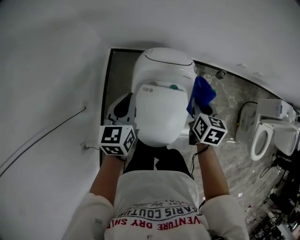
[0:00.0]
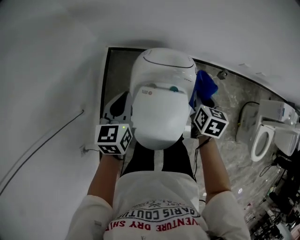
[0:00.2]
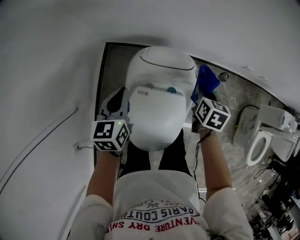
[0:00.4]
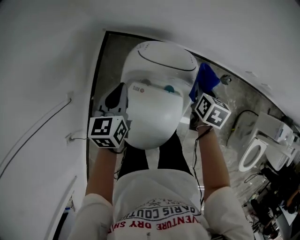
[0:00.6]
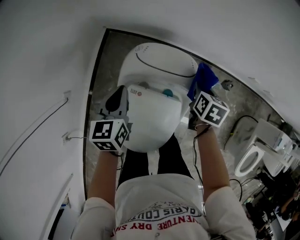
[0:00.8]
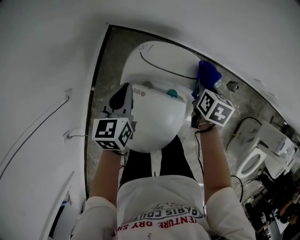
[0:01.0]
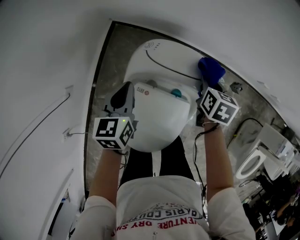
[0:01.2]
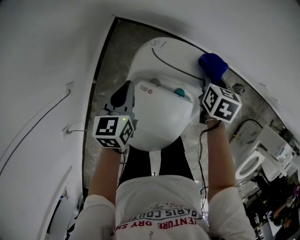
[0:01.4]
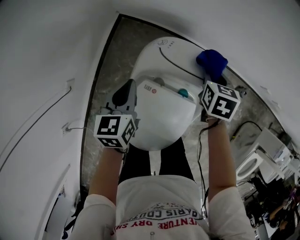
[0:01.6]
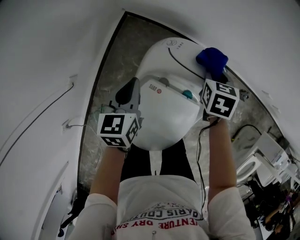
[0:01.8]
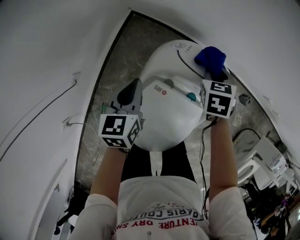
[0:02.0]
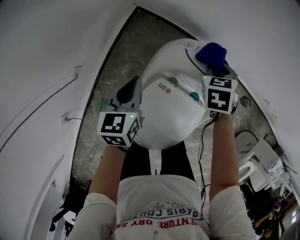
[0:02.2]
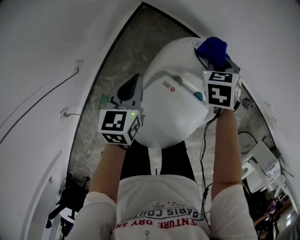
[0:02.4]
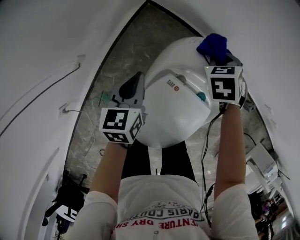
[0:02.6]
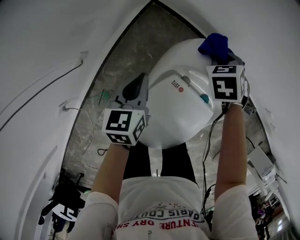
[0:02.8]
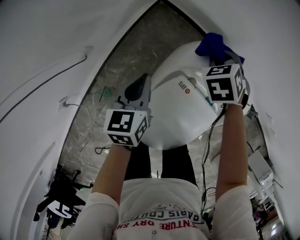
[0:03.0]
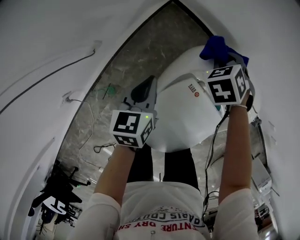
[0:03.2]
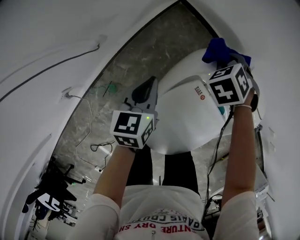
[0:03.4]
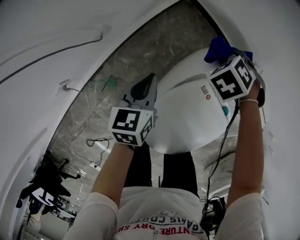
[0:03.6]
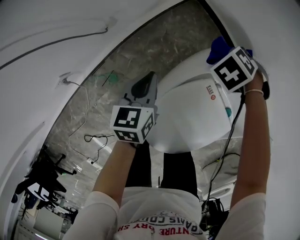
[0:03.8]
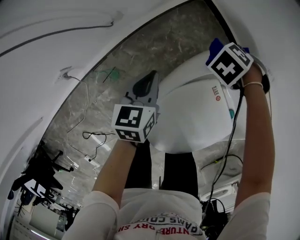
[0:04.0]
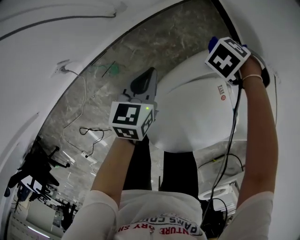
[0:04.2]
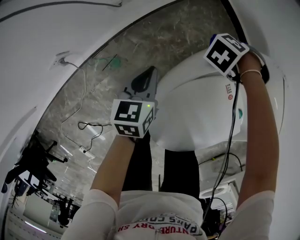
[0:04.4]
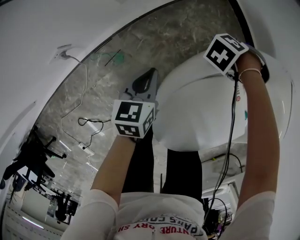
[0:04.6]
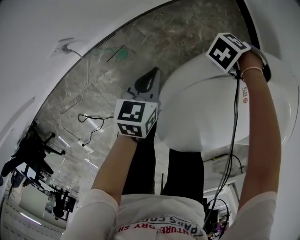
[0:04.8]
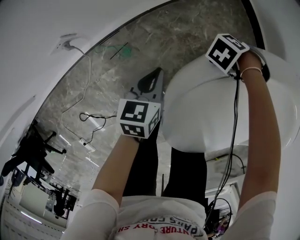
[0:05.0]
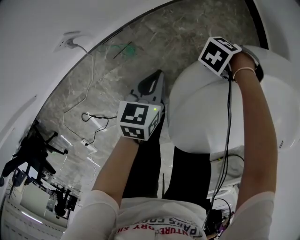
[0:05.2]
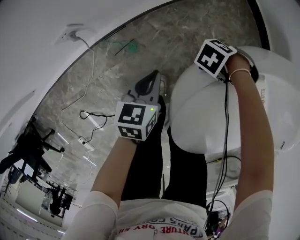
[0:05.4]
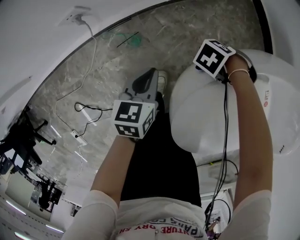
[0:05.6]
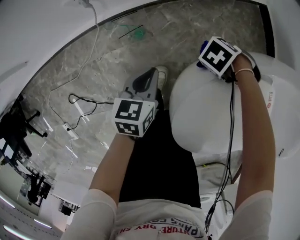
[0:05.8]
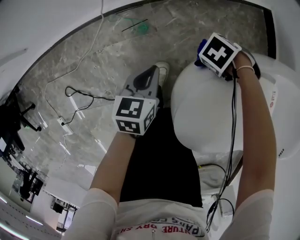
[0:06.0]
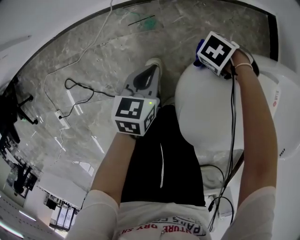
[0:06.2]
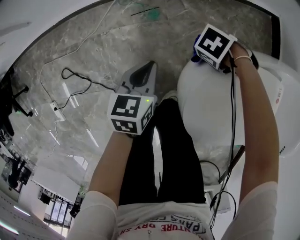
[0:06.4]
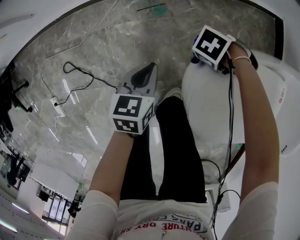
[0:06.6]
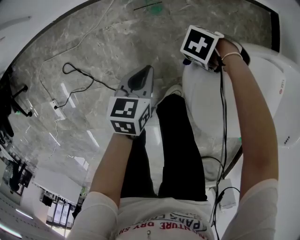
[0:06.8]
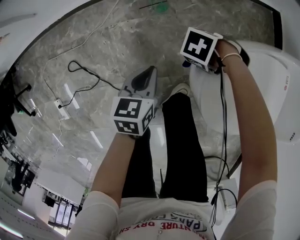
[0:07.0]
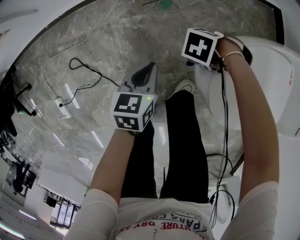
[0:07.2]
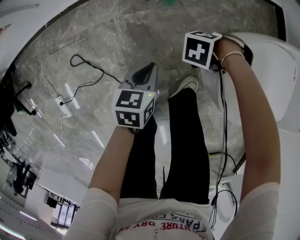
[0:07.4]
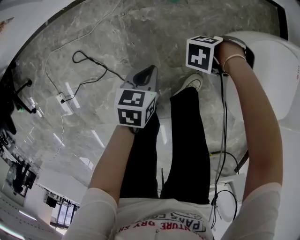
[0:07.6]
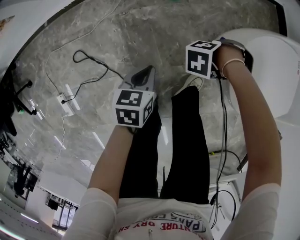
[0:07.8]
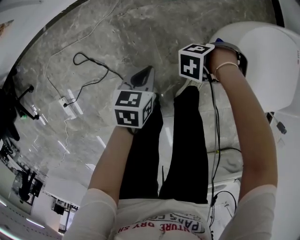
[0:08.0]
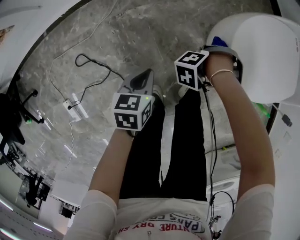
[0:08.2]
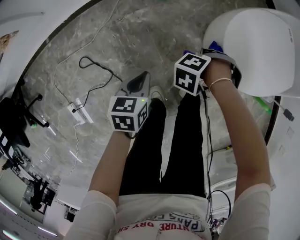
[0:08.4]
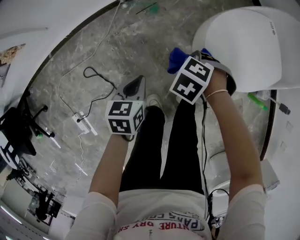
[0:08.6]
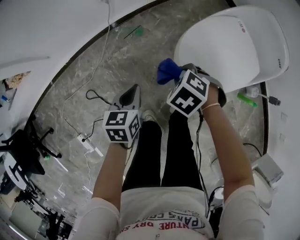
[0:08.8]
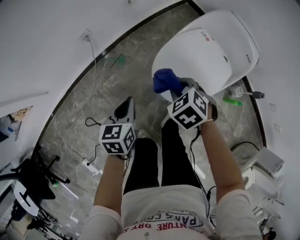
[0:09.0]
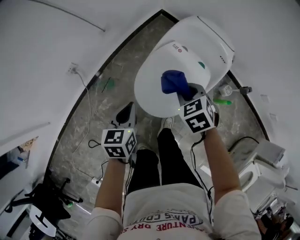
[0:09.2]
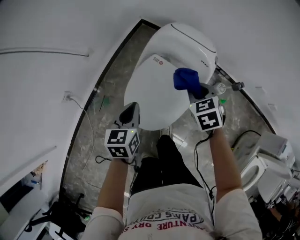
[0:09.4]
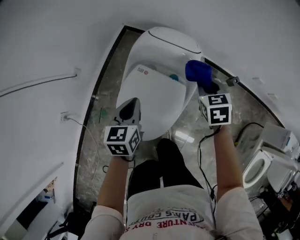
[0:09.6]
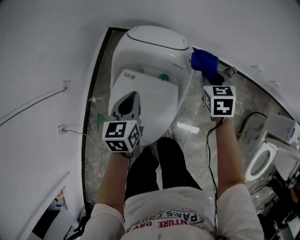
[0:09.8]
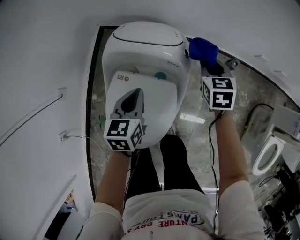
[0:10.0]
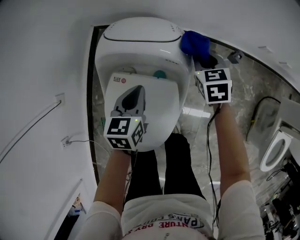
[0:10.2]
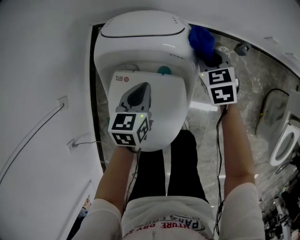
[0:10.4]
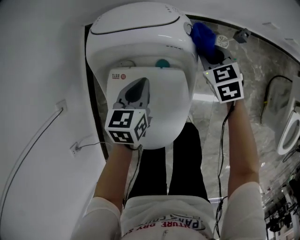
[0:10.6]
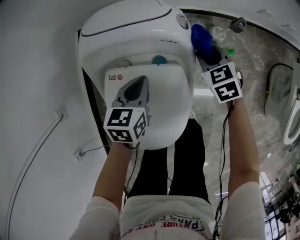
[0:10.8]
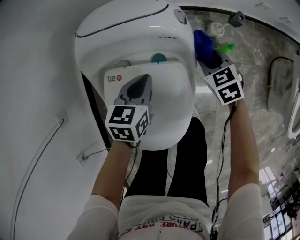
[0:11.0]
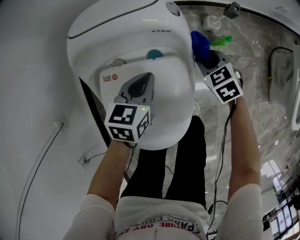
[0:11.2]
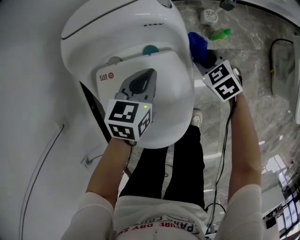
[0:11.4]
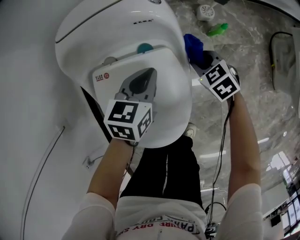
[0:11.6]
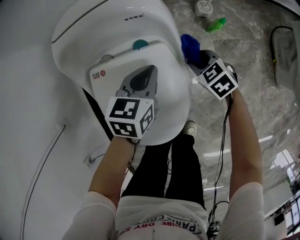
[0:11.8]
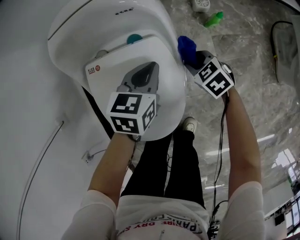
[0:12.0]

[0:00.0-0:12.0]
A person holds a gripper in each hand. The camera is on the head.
0.0 to 1.6 s: The right gripper is displaced forward and downward by approximately 30 cm, and swivels about 30 degrees. Meanwhile the left gripper is displaced downward and forward by approximately 20 cm.
1.6 to 3.0 s: The right gripper shifts about 25 cm to the left, and rolls counterclockwise, seen from behind, by about 50 degrees. The left gripper travels to the left, backward and downward by approximately 15 cm.
3.0 to 4.4 s: The right gripper is displaced downward by some 20 cm, and twists roughly 50 degrees counterclockwise, seen from behind, while the left gripper changes place by about 25 cm.
4.4 to 6.0 s: The left gripper travels to the right, backward and downward by approximately 25 cm. The right gripper goes about 30 cm backward, to the right and downward.
6.0 to 7.6 s: Both grippers travel together to the right and backward, some 25 cm. The right gripper turns by about 30 degrees.
7.6 to 9.0 s: The grippers both shift upward by approximately 30 cm. The left gripper swivels roughly 20 degrees. Meanwhile the right gripper changes its angle by some 80 degrees.
9.0 to 10.4 s: The two grippers travel together, roughly 50 cm. The left gripper swivels about 50 degrees. Meanwhile the right gripper twists approximately 60 degrees clockwise, seen from behind.
10.4 to 12.0 s: The left gripper heads to the right, backward and downward, covering roughly 15 cm, and swivels approximately 30 degrees, while the right gripper heads backward and downward, covering some 25 cm.

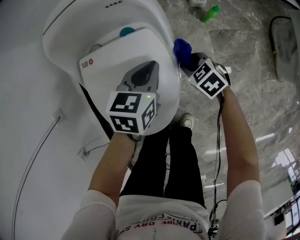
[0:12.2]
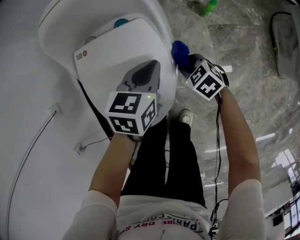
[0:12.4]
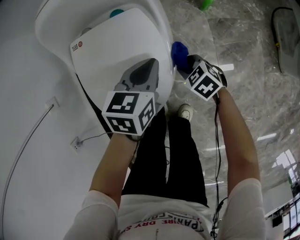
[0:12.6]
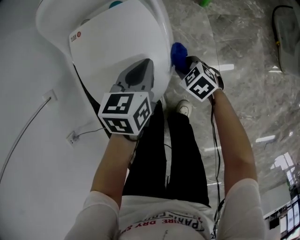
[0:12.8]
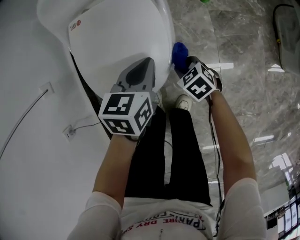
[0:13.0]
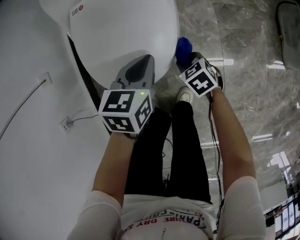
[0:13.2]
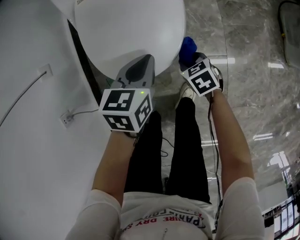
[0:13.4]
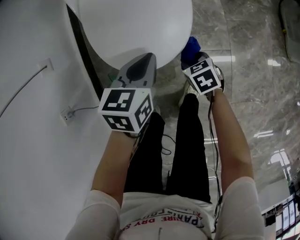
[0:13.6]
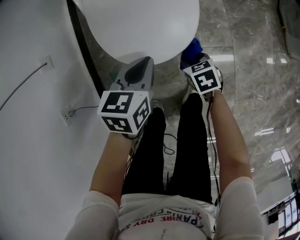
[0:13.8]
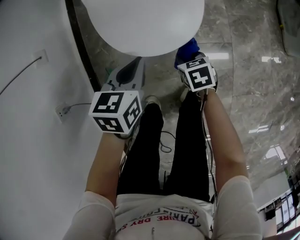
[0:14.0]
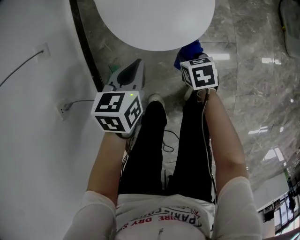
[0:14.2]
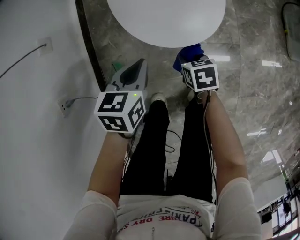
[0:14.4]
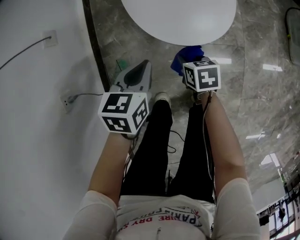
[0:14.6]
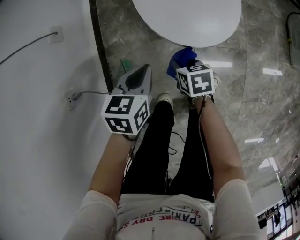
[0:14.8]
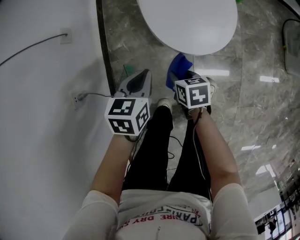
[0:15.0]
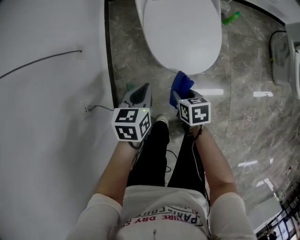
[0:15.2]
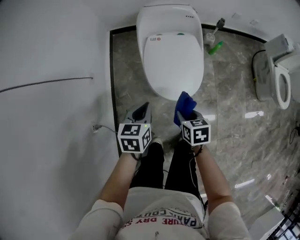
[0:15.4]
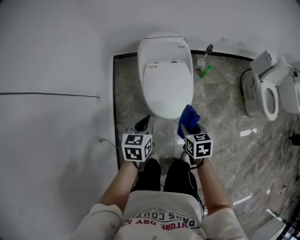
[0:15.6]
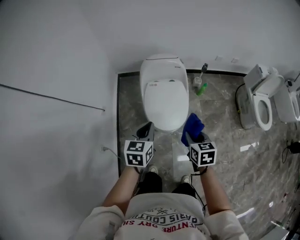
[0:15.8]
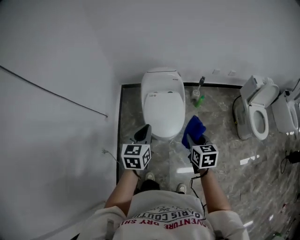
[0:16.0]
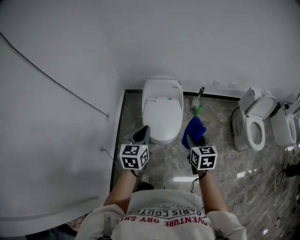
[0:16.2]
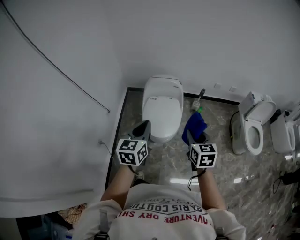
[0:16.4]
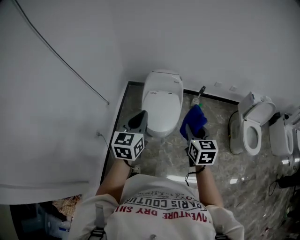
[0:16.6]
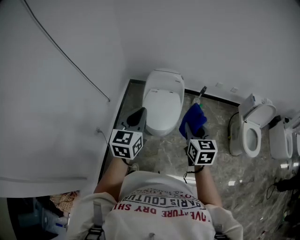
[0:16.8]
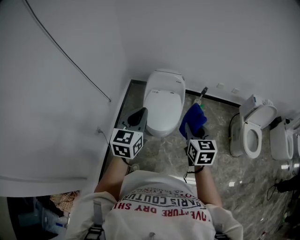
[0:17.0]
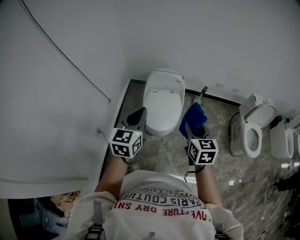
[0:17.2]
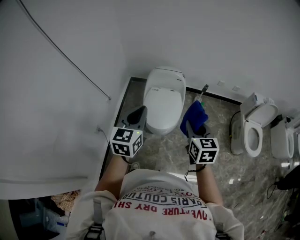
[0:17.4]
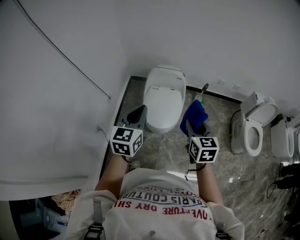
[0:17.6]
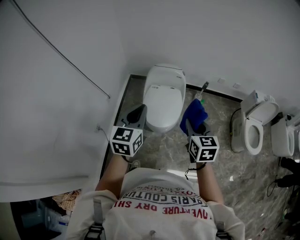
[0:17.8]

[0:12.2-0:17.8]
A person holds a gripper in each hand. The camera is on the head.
12.2 to 13.6 s: Both grippers move backward and to the left, approximately 25 cm.
13.6 to 15.0 s: The grippers both shift to the left by roughly 25 cm.
15.0 to 16.4 s: Both grippers move upward, roughly 60 cm. The right gripper changes its angle by about 40 degrees, while the left gripper angles its fingers upward, by some 30 degrees.
16.4 to 17.8 s: There are only small adjustments of the grippers.

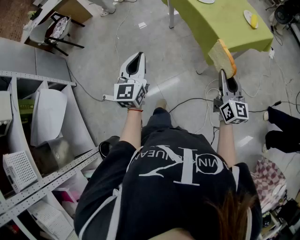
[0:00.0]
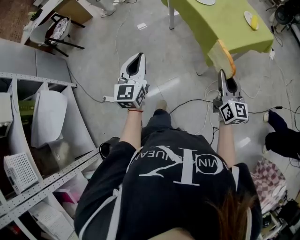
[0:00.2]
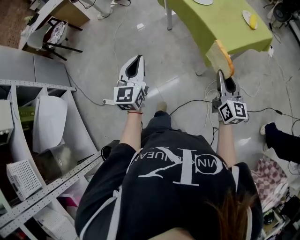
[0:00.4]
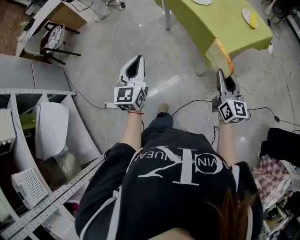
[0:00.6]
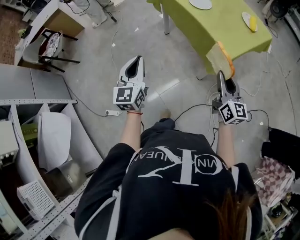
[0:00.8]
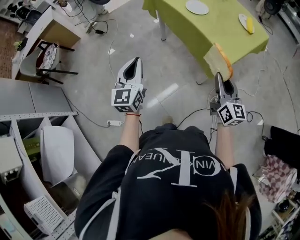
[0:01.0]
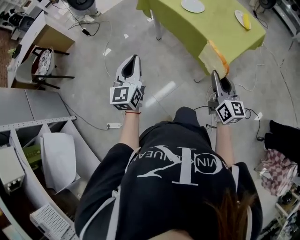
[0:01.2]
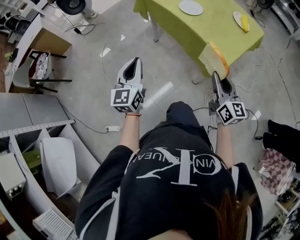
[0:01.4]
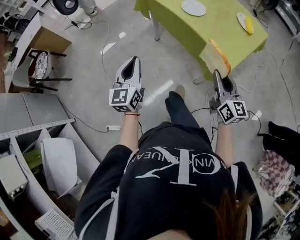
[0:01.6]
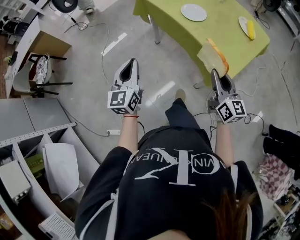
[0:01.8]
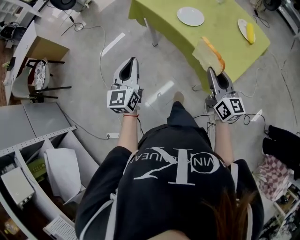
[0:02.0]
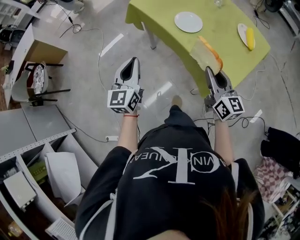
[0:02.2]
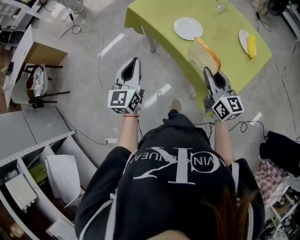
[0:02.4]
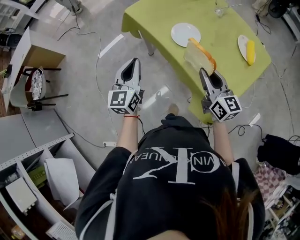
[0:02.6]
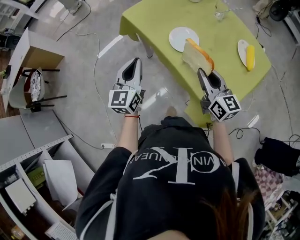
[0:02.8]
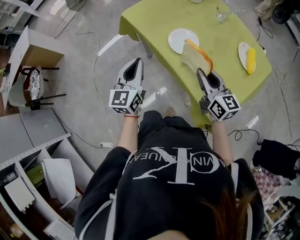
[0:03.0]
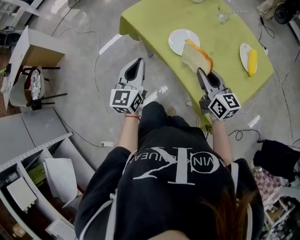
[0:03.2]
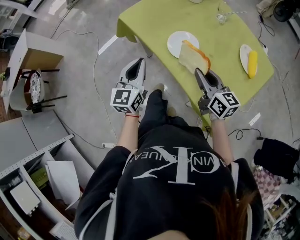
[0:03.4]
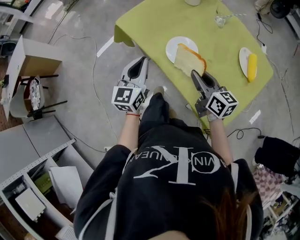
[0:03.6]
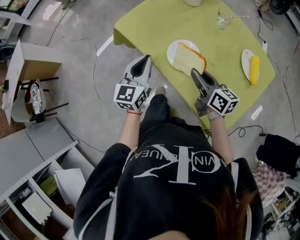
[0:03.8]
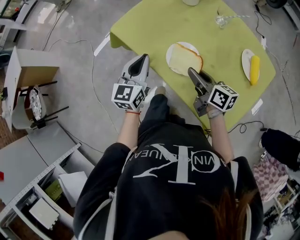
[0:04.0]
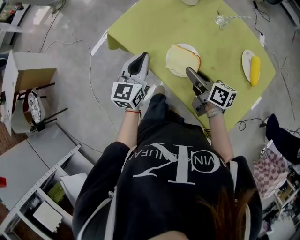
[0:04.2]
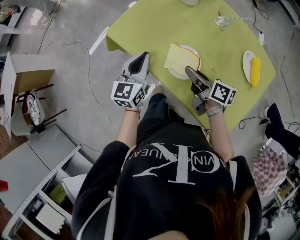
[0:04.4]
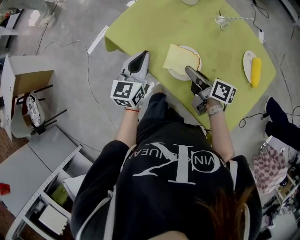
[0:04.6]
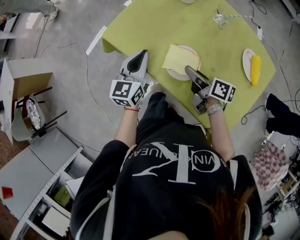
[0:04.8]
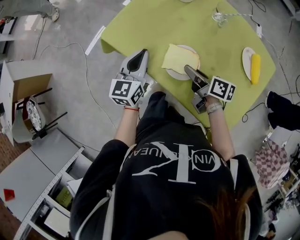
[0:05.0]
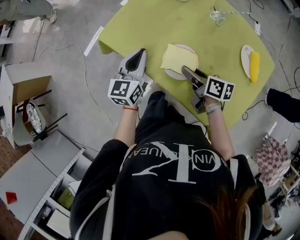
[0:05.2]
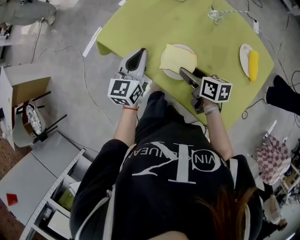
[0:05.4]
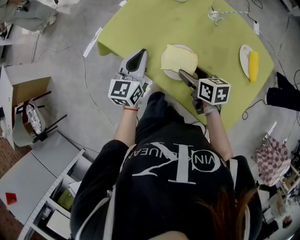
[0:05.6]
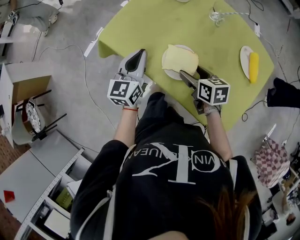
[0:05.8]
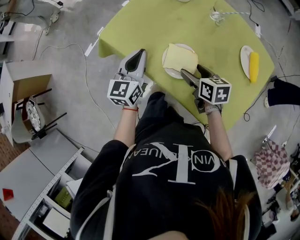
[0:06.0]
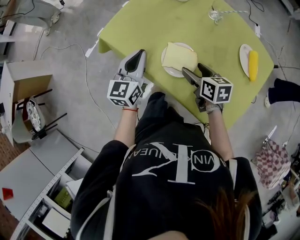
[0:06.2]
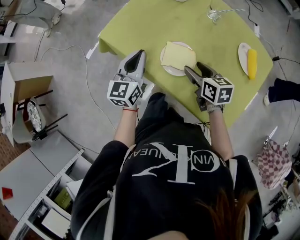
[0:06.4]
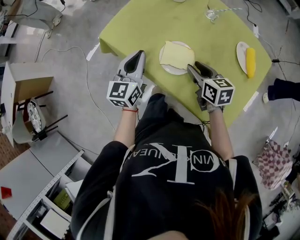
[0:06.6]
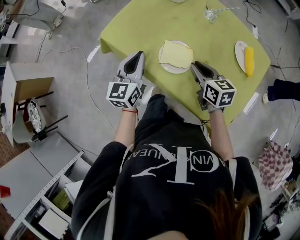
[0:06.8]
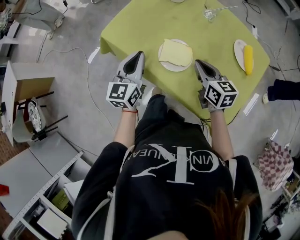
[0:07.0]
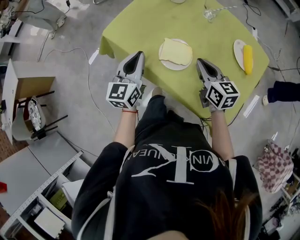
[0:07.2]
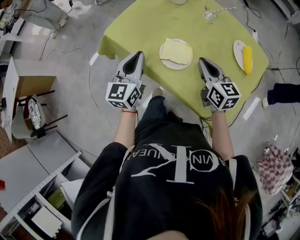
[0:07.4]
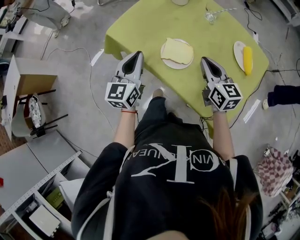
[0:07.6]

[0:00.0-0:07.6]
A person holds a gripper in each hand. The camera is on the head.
0.0 to 1.6 s: Both grippers travel together forward, approximately 20 cm.
1.6 to 3.0 s: The right gripper goes some 30 cm forward; the left gripper is displaced forward and to the right by some 30 cm.
3.0 to 4.6 s: The right gripper is displaced forward and downward by some 15 cm, and rotates around the line of its fingers by approximately 50 degrees, clockwise from behind, while the left gripper travels forward by approximately 20 cm.
4.6 to 6.0 s: The right gripper changes its angle by about 40 degrees, and opens.
6.0 to 7.6 s: The left gripper shifts roughly 10 cm backward and upward; the right gripper goes about 10 cm upward, rotates about 30 degrees, and closes its fingers.
